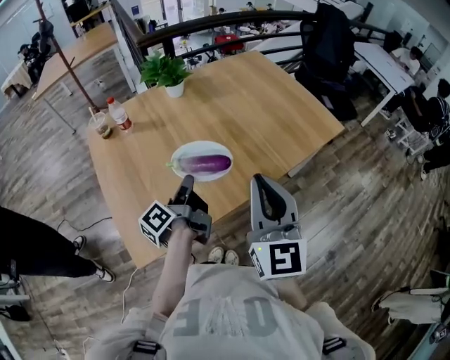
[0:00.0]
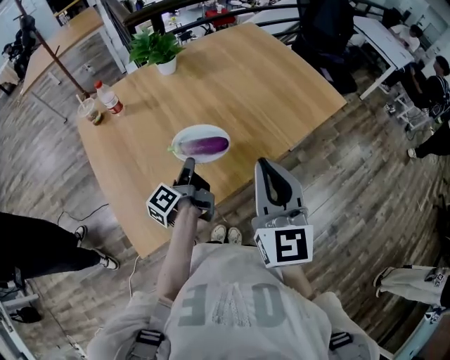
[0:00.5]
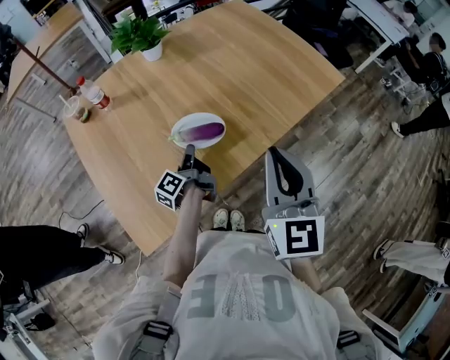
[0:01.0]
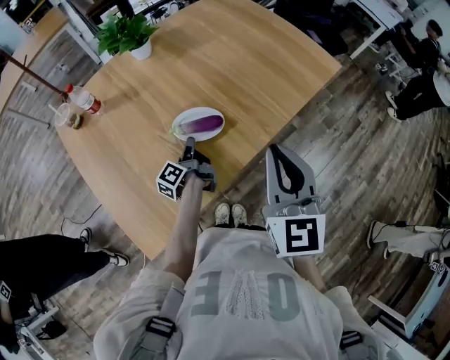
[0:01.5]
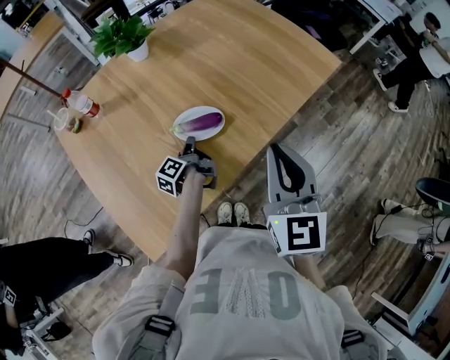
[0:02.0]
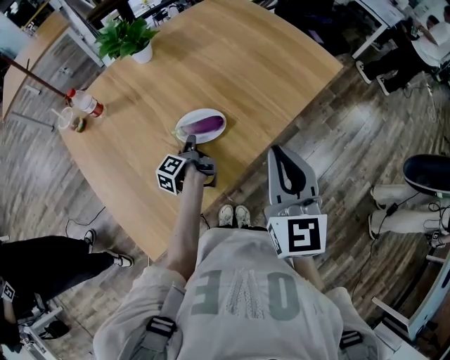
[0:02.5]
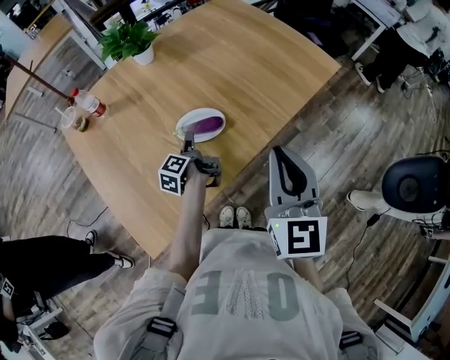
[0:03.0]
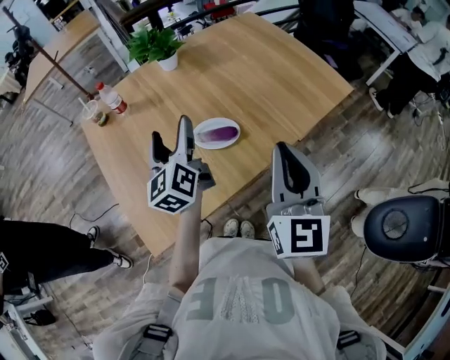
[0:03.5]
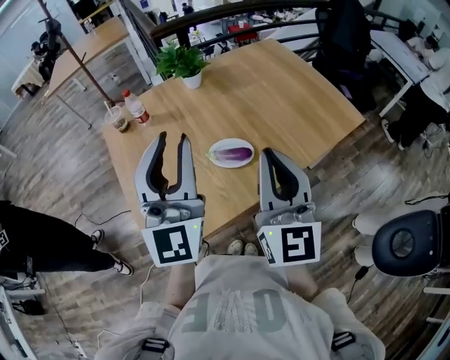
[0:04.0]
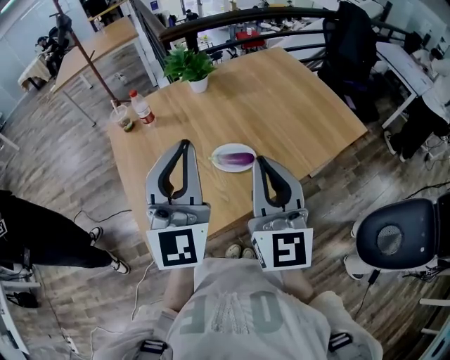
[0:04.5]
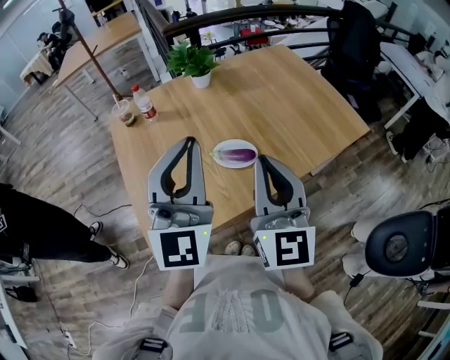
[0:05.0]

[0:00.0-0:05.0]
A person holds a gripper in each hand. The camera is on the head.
0:00.0 to 0:02.5: The right gripper travels downward by some 5 cm.
0:02.5 to 0:05.0: The right gripper moves approximately 10 cm, and changes its angle by about 20 degrees.

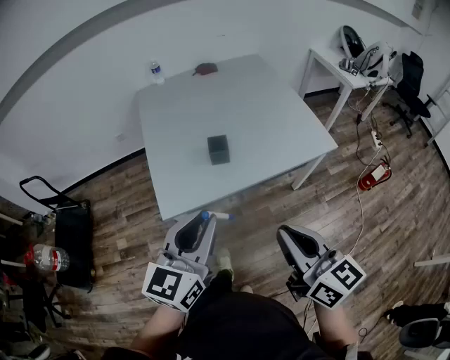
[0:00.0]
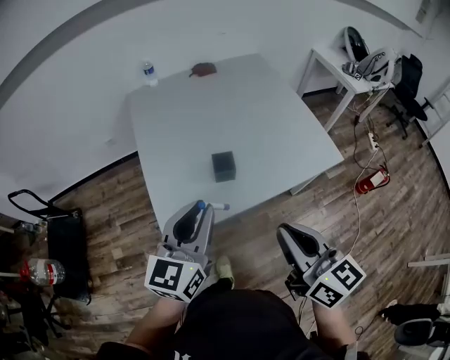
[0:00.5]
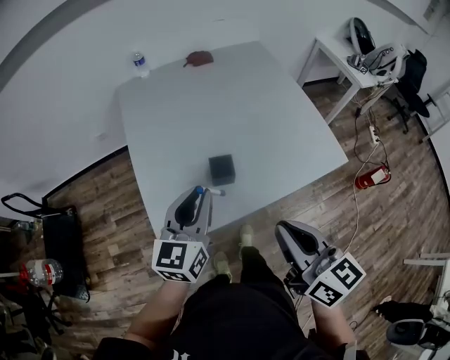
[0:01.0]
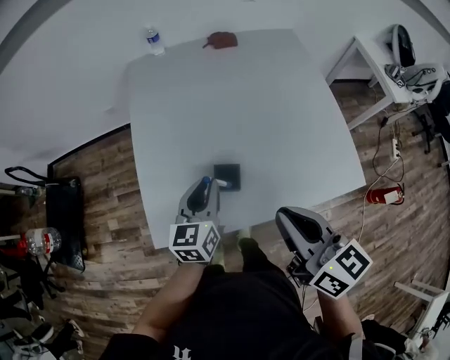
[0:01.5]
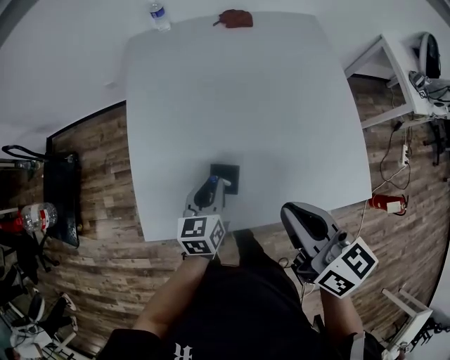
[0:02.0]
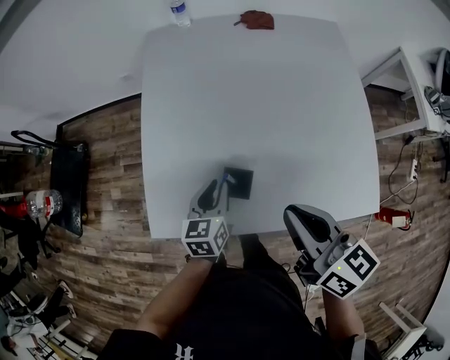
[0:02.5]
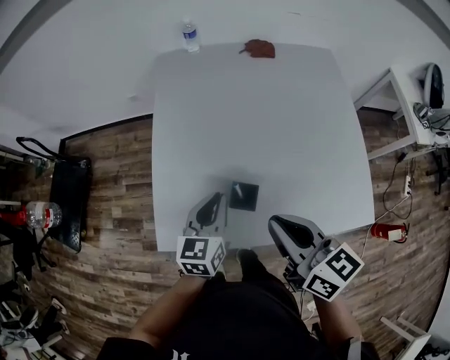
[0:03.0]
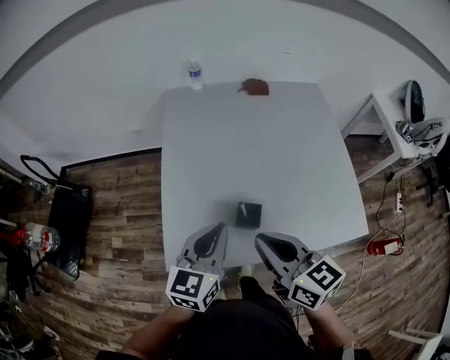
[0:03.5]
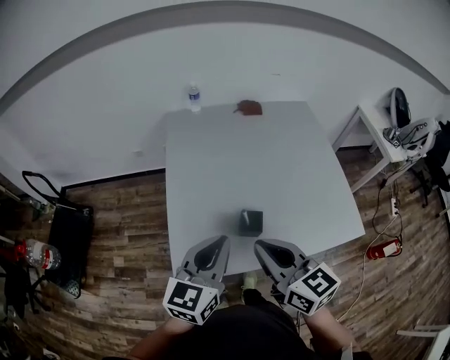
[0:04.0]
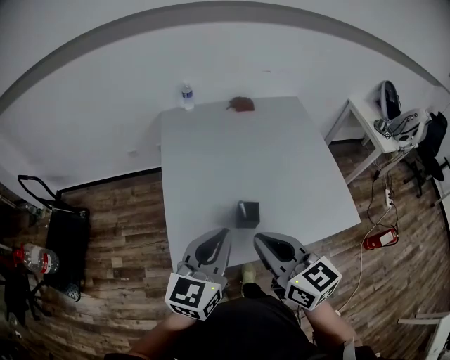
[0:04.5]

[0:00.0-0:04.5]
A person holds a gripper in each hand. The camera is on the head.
0:00.0 to 0:02.0: The left gripper shifts about 40 cm forward and downward, and changes its angle by roughly 40 degrees, while the right gripper shifts about 35 cm forward, and turns by about 20 degrees.
0:02.0 to 0:04.5: The left gripper travels upward, to the left and backward by approximately 25 cm, and rotates about 30 degrees. The right gripper heads to the left, covering roughly 15 cm.

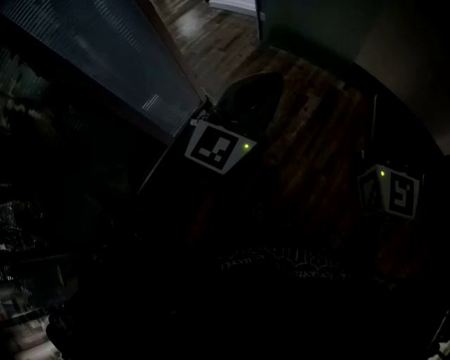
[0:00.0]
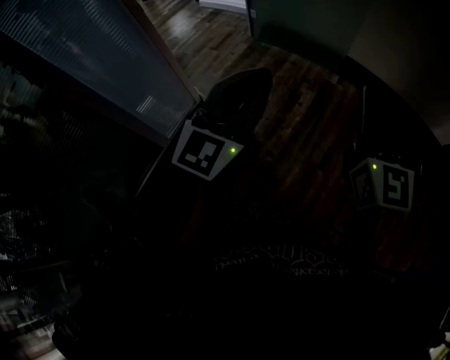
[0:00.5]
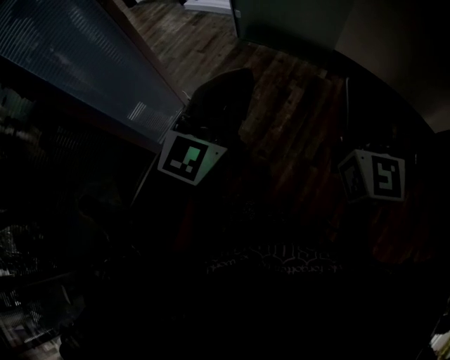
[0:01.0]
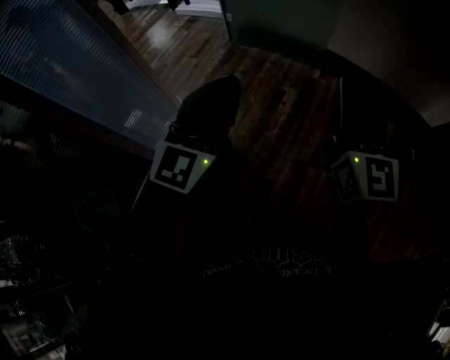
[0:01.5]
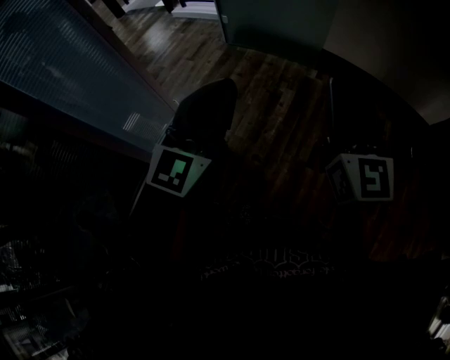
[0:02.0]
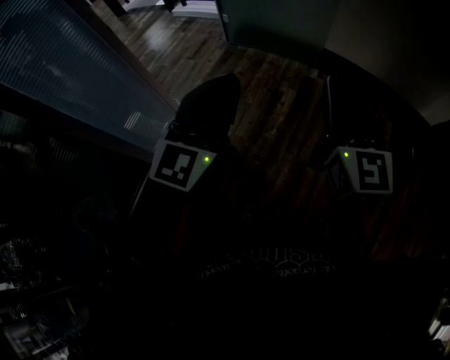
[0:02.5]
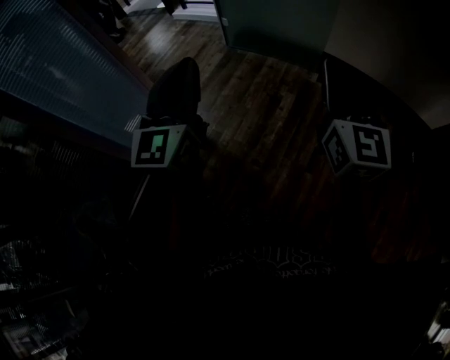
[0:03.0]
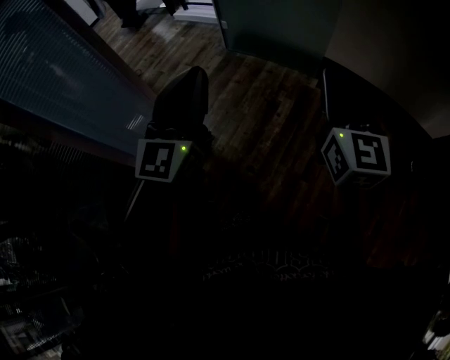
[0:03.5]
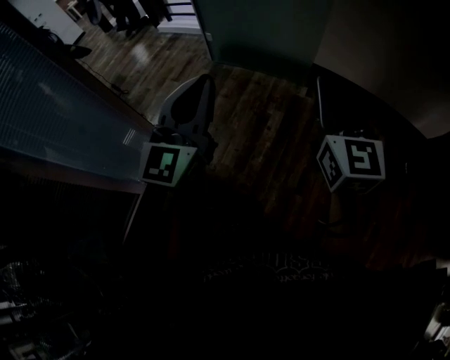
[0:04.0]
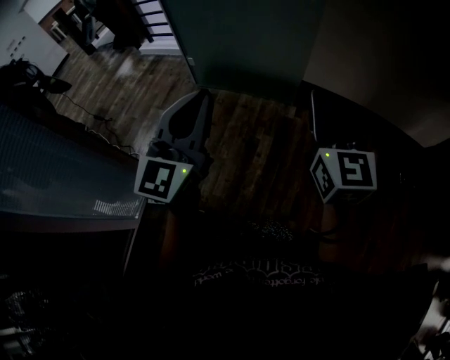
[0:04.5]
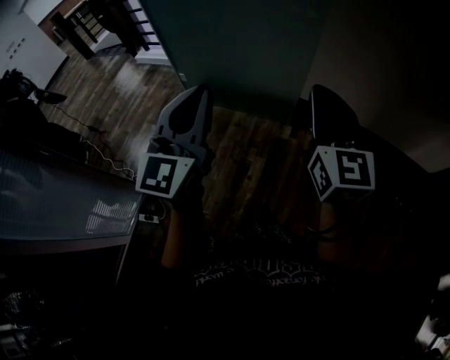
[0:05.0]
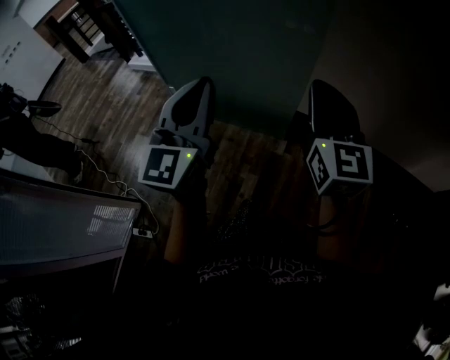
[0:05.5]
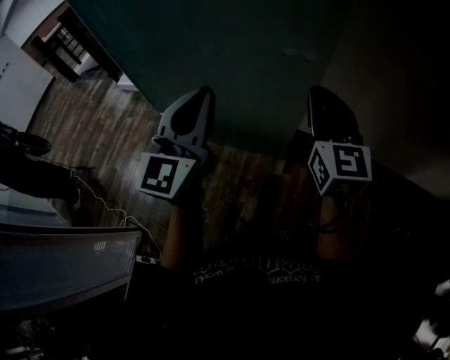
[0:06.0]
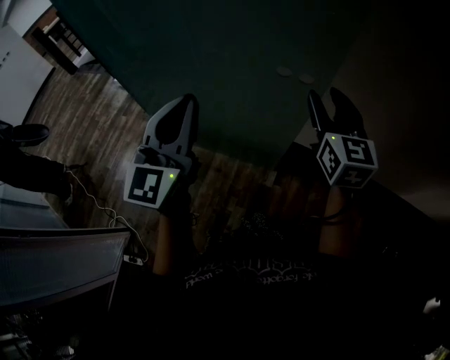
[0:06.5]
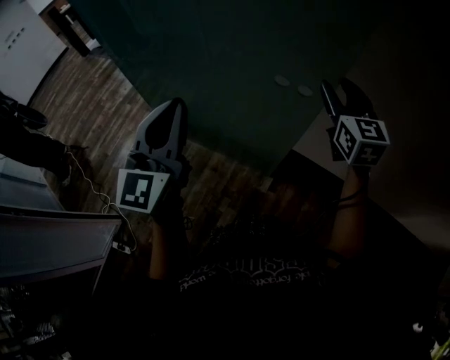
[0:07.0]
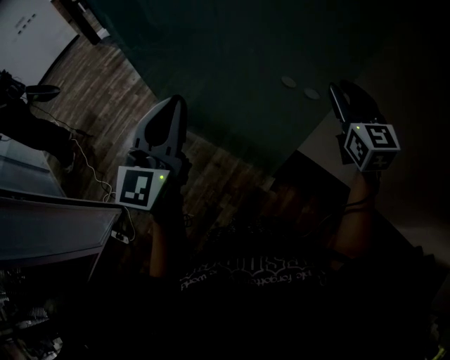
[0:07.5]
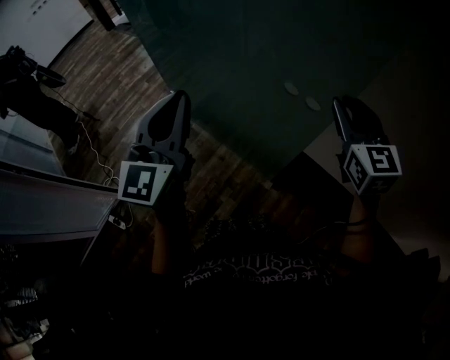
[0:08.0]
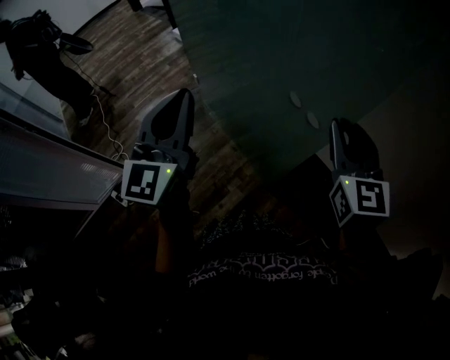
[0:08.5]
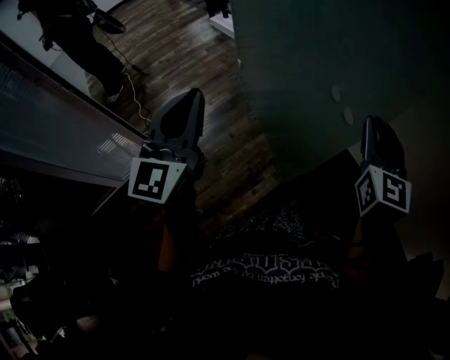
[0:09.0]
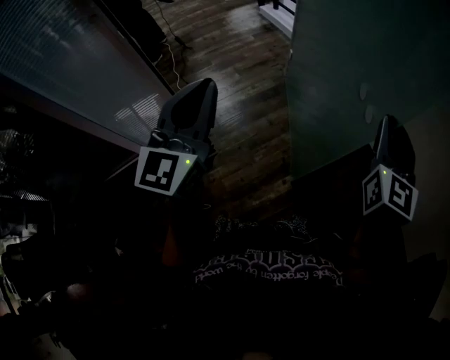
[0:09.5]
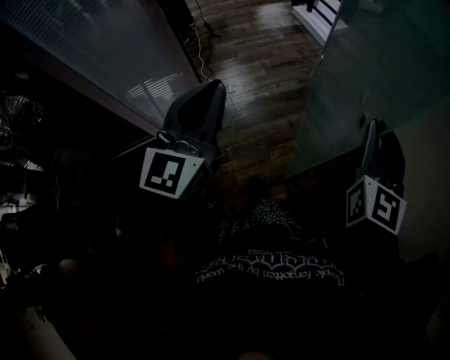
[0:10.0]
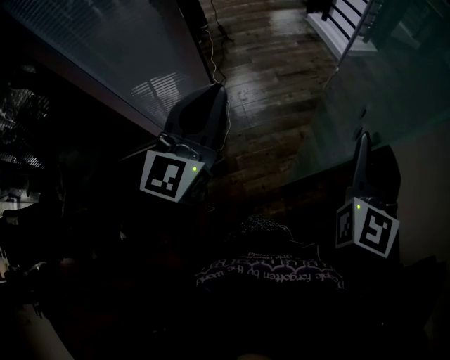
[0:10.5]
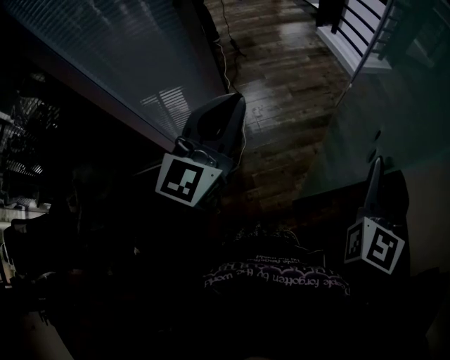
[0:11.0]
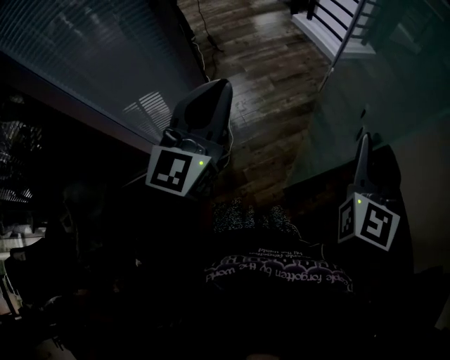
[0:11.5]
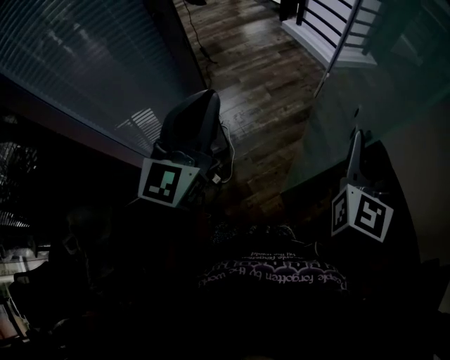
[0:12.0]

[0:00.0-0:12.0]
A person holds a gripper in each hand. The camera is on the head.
0:00.0 to 0:02.0: The grippers make only small movements.
0:02.0 to 0:04.0: Both grippers move forward, approximately 20 cm.
0:04.0 to 0:06.0: The pair of grippers is taken forward, about 70 cm.
0:06.0 to 0:08.0: The left gripper turns by about 20 degrees; the right gripper heads forward and to the right, covering approximately 15 cm, changes its angle by about 20 degrees, and opens up.
0:08.0 to 0:10.0: Both grippers are carried to the left and backward, about 50 cm. The left gripper swivels approximately 30 degrees.
0:10.0 to 0:12.0: The right gripper moves to the left, approximately 20 cm, while the left gripper travels to the left and forward by some 25 cm.

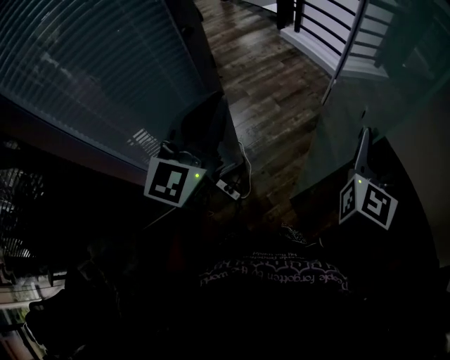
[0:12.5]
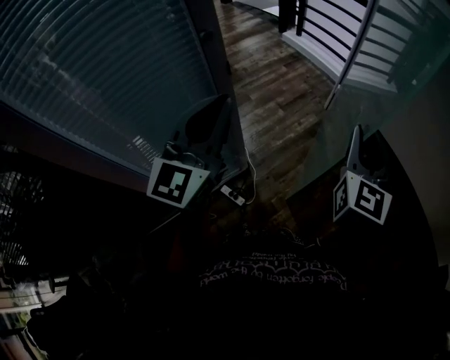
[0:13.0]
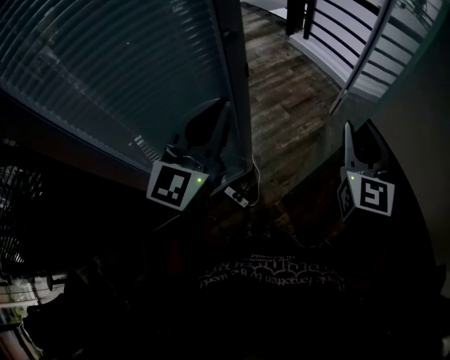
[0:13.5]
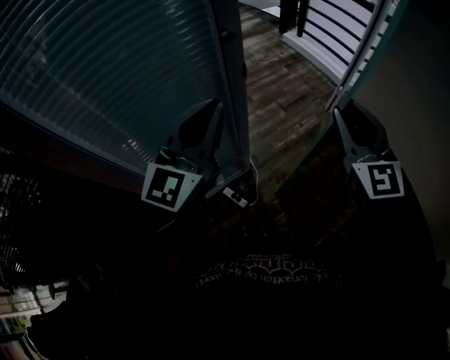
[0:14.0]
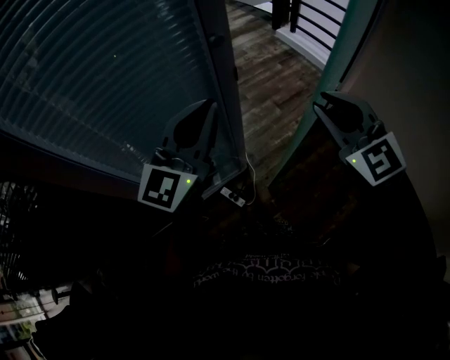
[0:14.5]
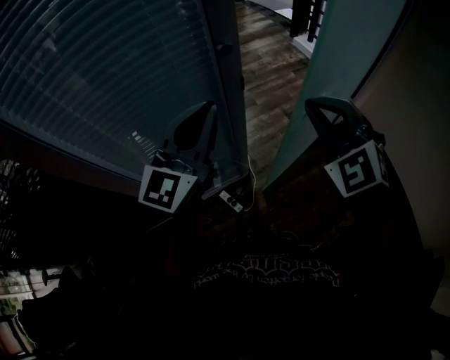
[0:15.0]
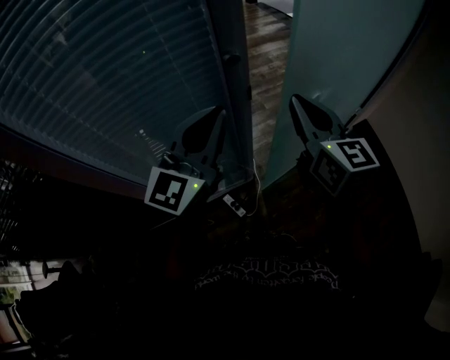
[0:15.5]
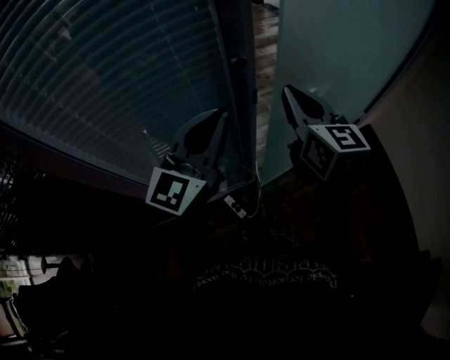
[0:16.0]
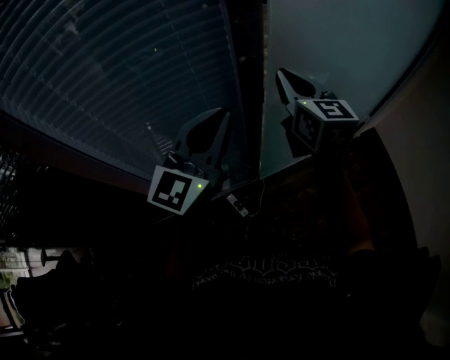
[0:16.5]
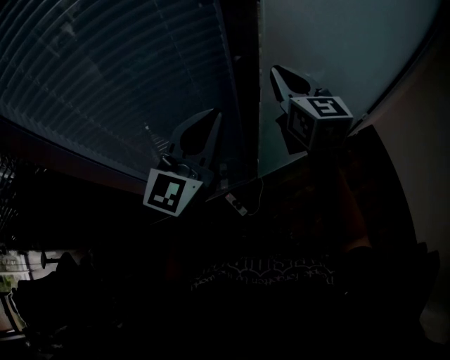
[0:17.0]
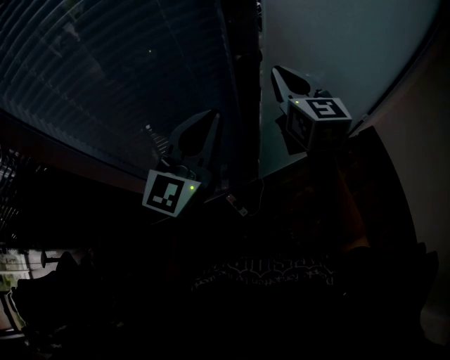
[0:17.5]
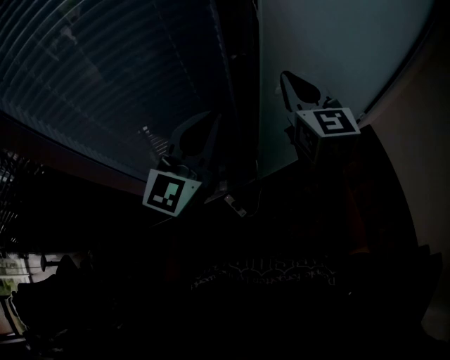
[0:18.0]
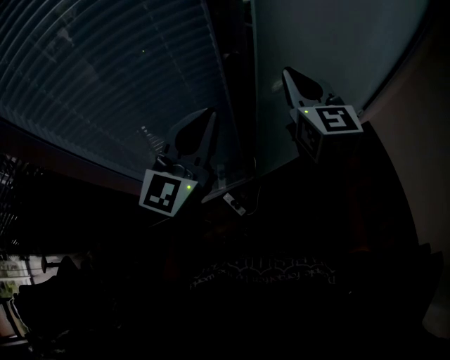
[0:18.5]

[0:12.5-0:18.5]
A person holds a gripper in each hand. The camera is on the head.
0:12.5 to 0:14.5: The right gripper moves to the left, approximately 25 cm, and changes its angle by about 50 degrees. The left gripper goes approximately 10 cm to the left.
0:14.5 to 0:16.5: The right gripper is displaced forward and to the left by approximately 20 cm, rotates about 30 degrees, and closes its fingers, while the left gripper shifts some 5 cm forward.
0:16.5 to 0:18.5: The right gripper ends up about 5 cm from where it was.
